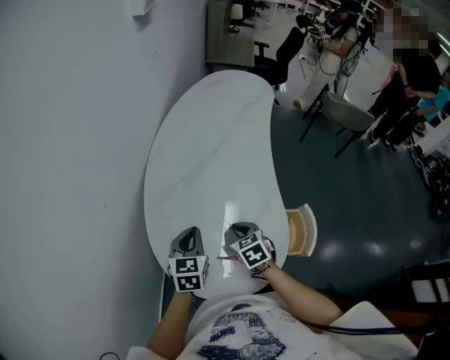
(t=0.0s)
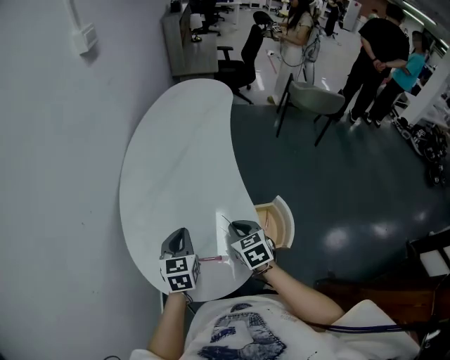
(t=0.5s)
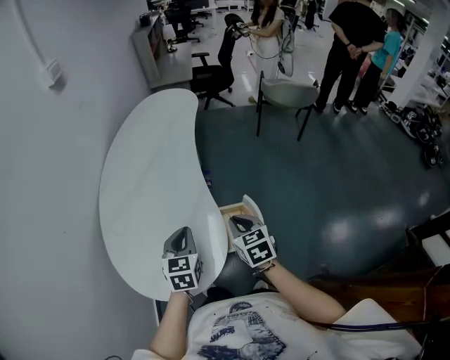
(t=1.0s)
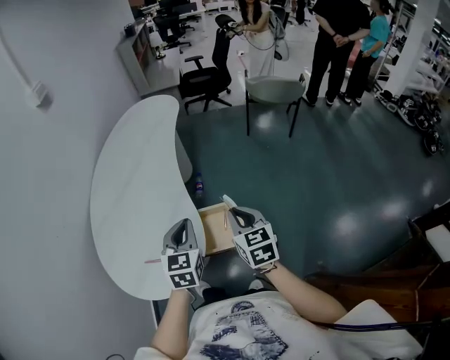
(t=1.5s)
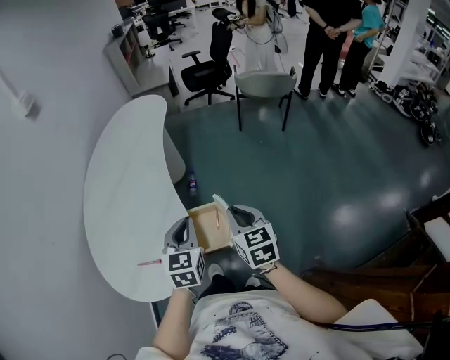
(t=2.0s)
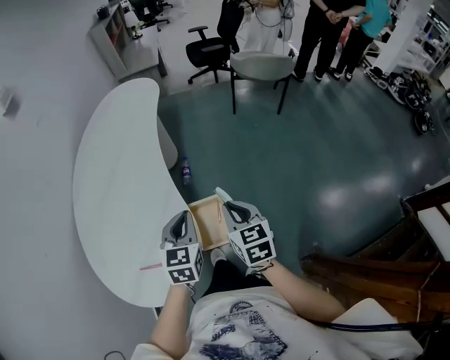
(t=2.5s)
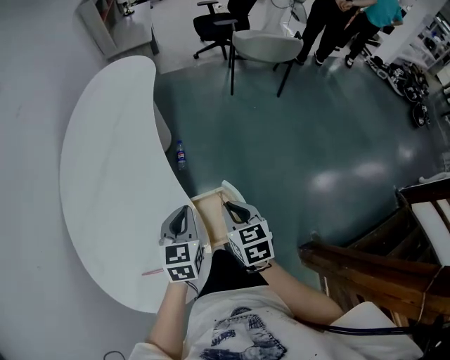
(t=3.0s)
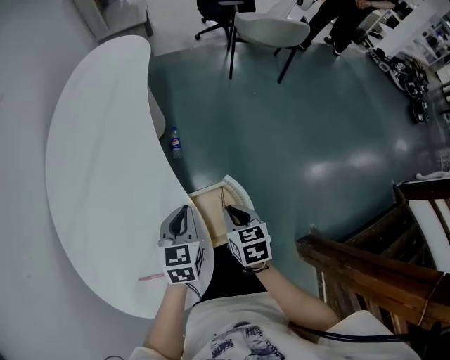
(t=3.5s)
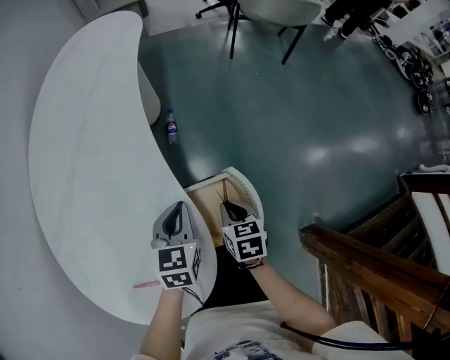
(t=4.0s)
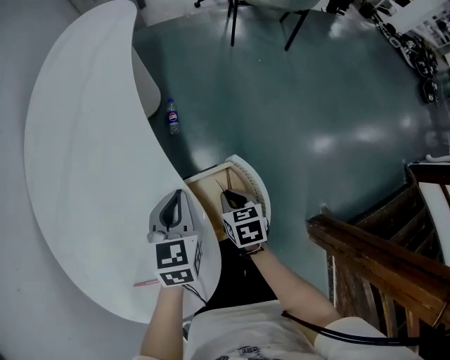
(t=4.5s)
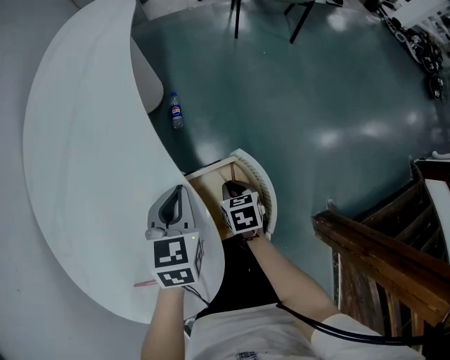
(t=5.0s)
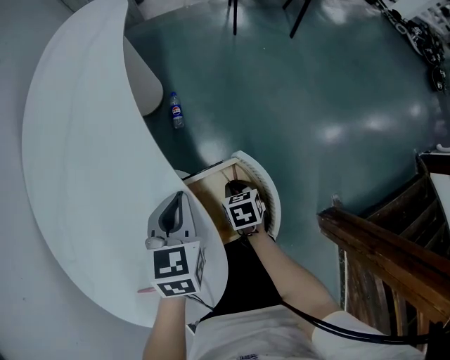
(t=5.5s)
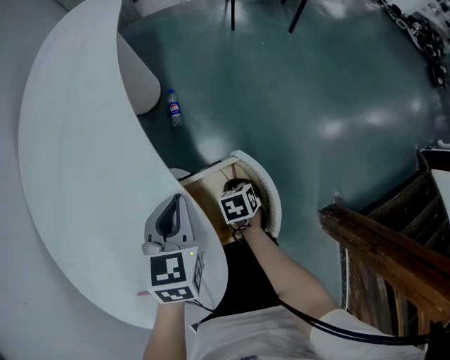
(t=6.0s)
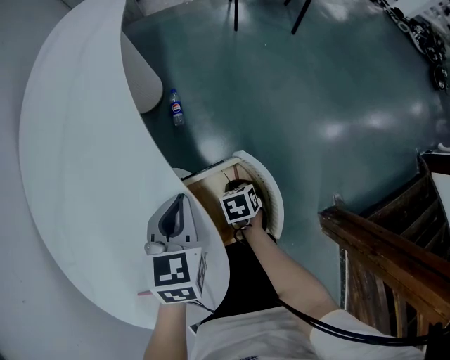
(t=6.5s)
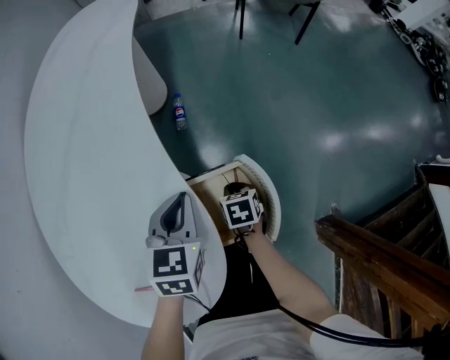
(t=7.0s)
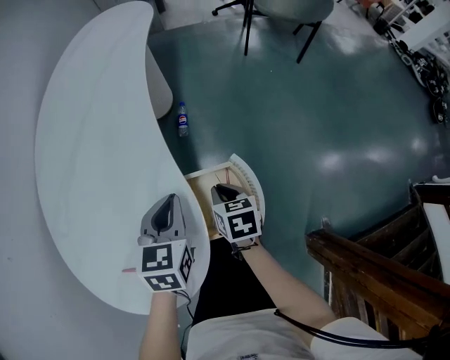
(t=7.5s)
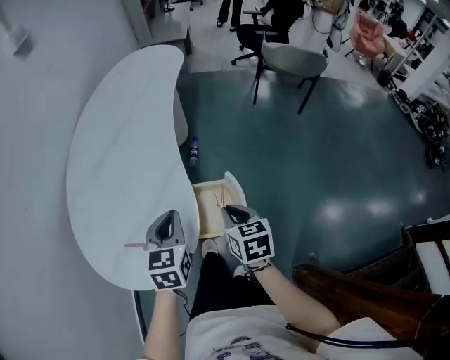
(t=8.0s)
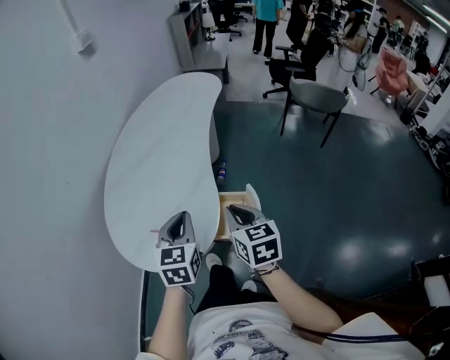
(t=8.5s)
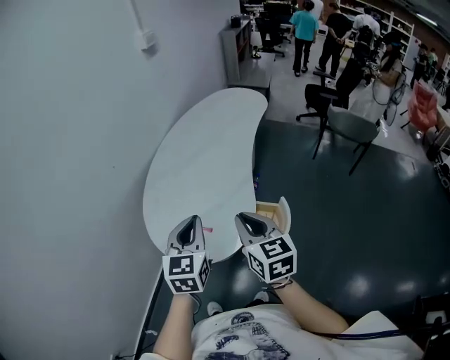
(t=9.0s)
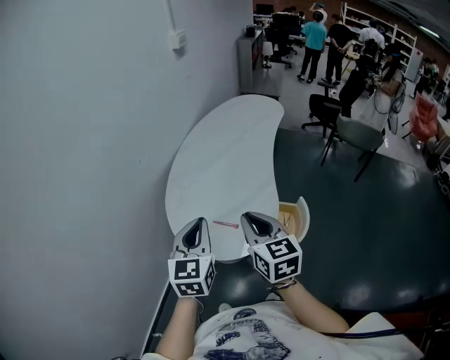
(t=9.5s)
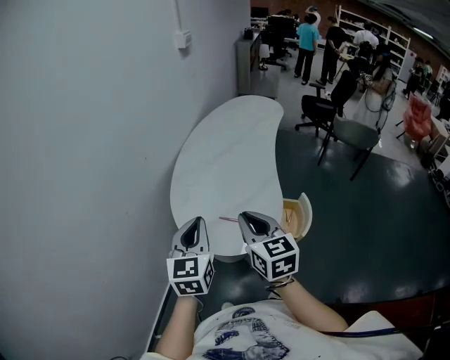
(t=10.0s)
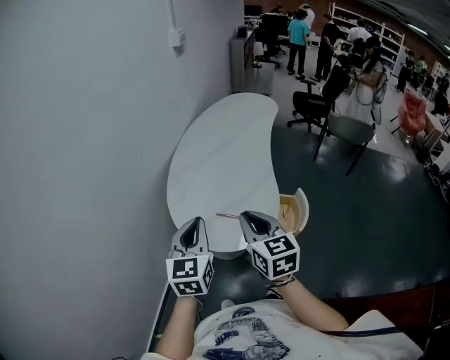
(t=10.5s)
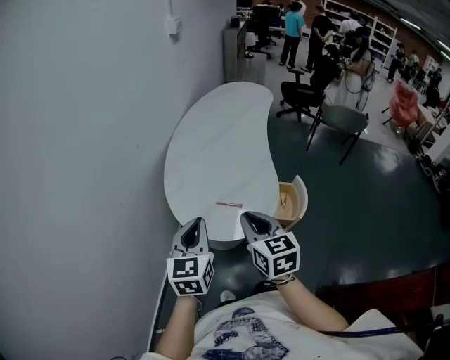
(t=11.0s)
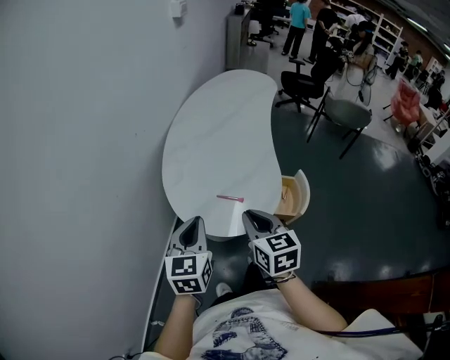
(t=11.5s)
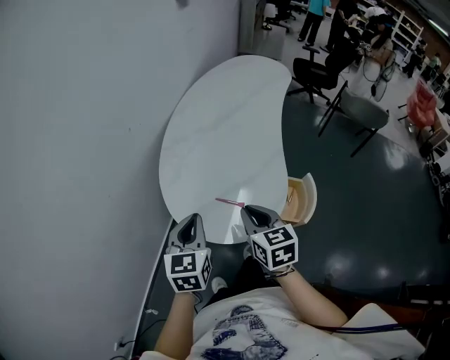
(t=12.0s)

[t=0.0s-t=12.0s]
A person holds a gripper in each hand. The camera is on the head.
t=0.0s to t=2.0s: Both grippers are carried to the right, about 50 cm. The right gripper changes its angle by roughly 40 degrees.
t=2.0s to t=4.0s: The left gripper moves downward, forward and to the left, approximately 30 cm; the right gripper is displaced downward by some 30 cm, and swivels approximately 30 degrees.
t=4.0s to t=6.0s: The right gripper is displaced downward by roughly 15 cm.
t=6.0s to t=8.0s: The right gripper shifts some 30 cm upward, and changes its angle by about 30 degrees, while the left gripper shifts roughly 20 cm upward and backward, and changes its angle by roughly 20 degrees.
t=8.0s to t=10.0s: The right gripper moves to the left and upward, some 40 cm, and turns by approximately 30 degrees; the left gripper heads to the left, upward and backward, covering roughly 40 cm, and turns by roughly 30 degrees.
t=10.0s to t=12.0s: Both grippers move downward and forward, some 15 cm.

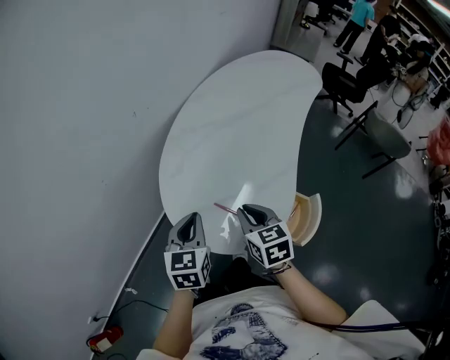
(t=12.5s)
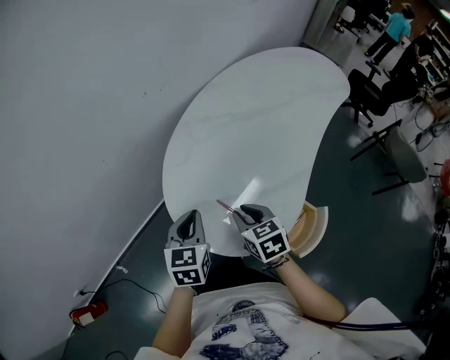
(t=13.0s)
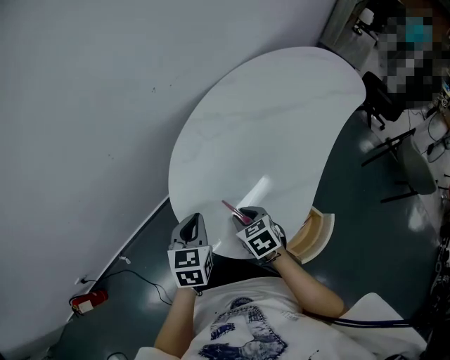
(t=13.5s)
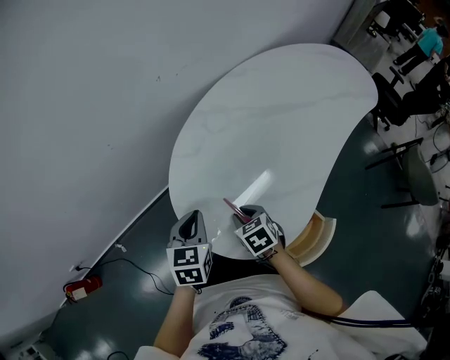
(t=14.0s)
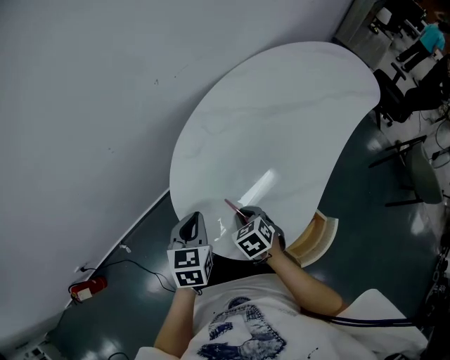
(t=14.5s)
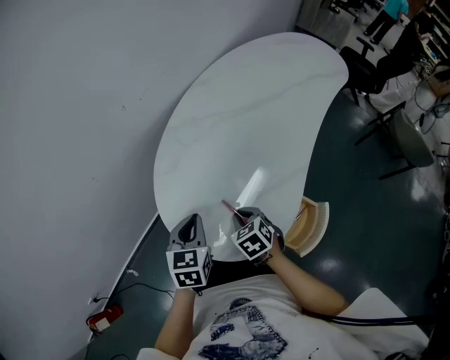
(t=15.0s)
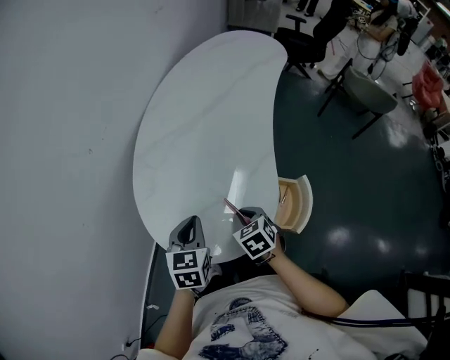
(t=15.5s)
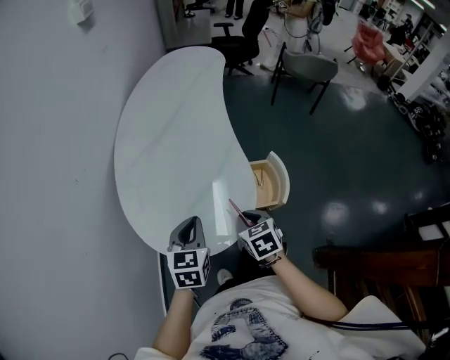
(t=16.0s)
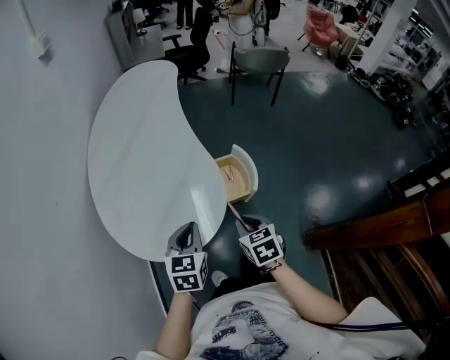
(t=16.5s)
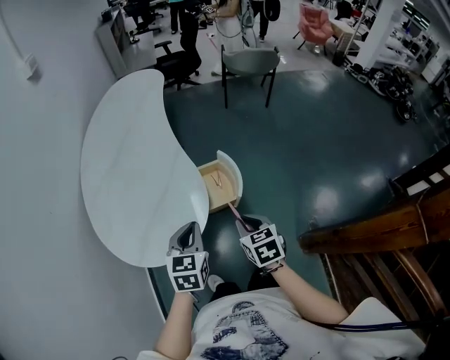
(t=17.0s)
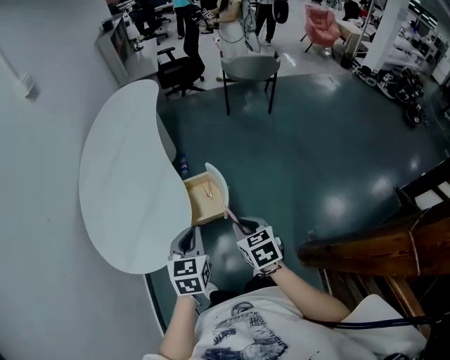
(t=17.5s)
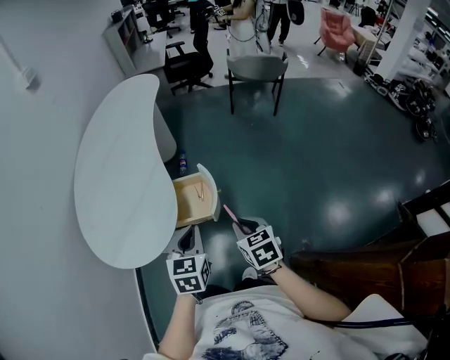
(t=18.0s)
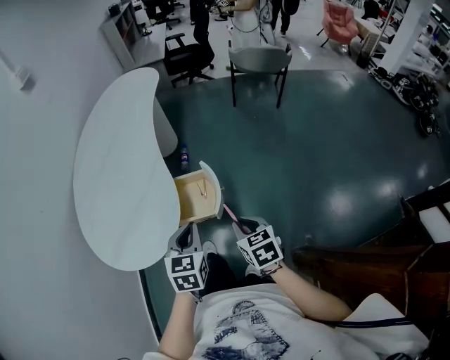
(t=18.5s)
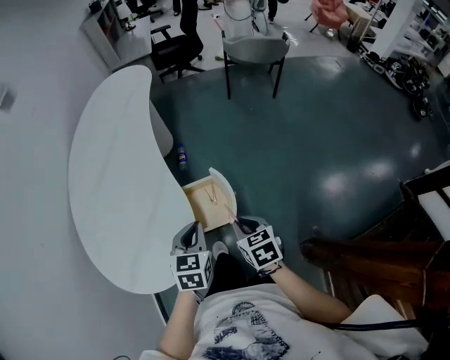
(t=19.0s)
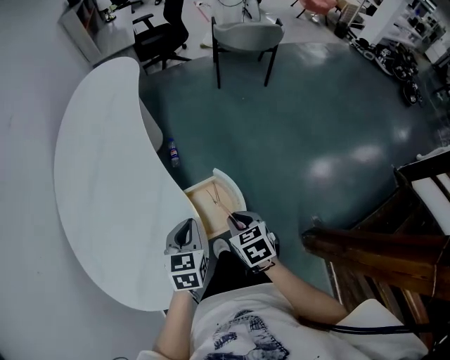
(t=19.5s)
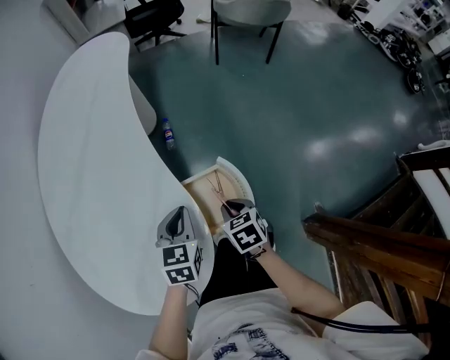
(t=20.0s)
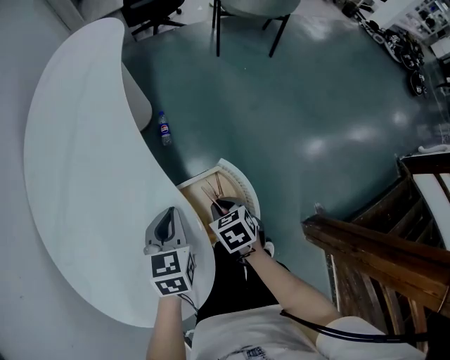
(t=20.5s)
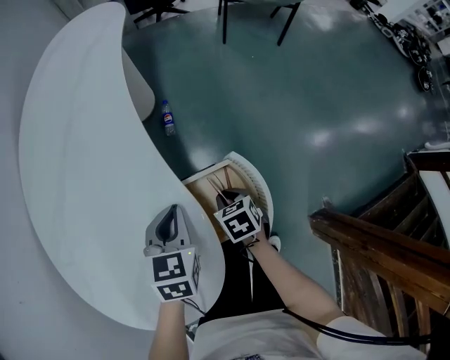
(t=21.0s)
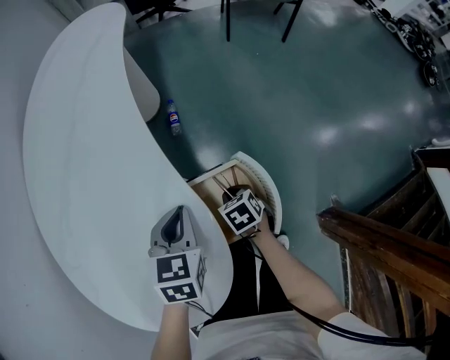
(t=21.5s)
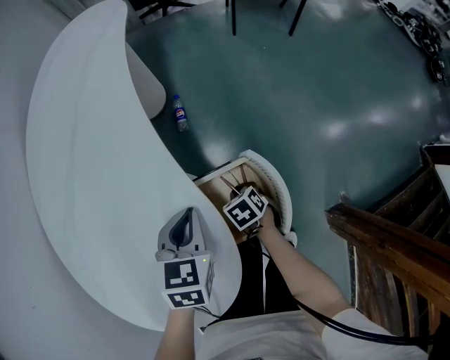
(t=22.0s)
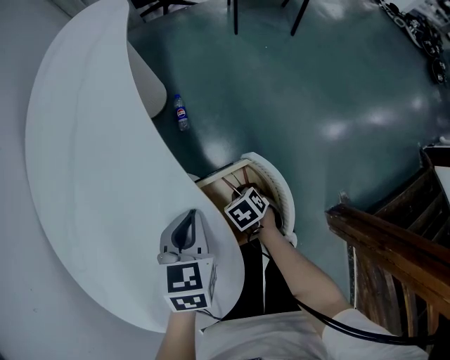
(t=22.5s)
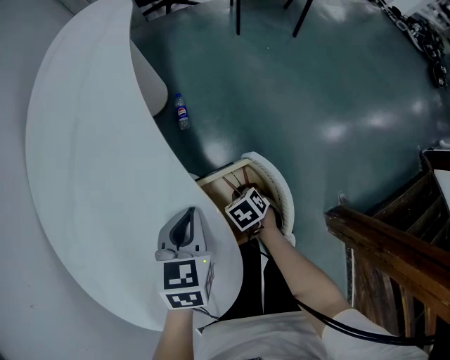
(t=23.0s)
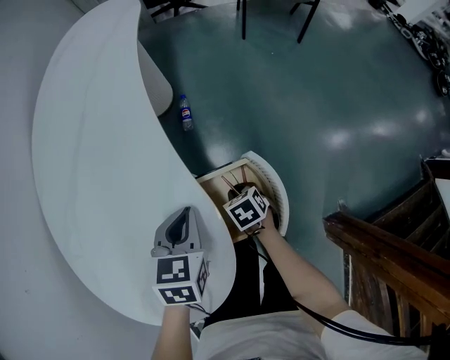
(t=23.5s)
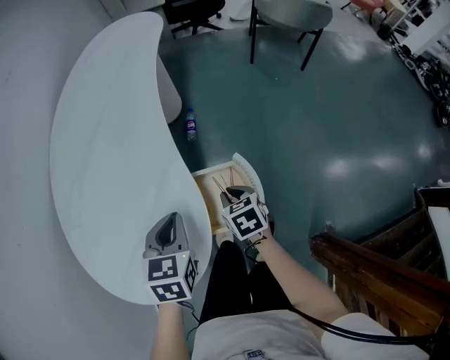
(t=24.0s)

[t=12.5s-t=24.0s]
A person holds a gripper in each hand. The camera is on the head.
t=12.5s to t=14.5s: The right gripper goes roughly 15 cm downward, and turns by roughly 40 degrees, while the left gripper is displaced downward by about 10 cm.
t=14.5s to t=16.5s: The left gripper moves some 20 cm, and swivels roughly 60 degrees. Meanwhile the right gripper changes place by approximately 30 cm, and turns by about 70 degrees.
t=16.5s to t=18.5s: The two grippers go approximately 25 cm to the right.
t=18.5s to t=20.0s: Both grippers travel together forward, downward and to the left, some 30 cm.
t=20.0s to t=22.0s: The right gripper heads downward, covering roughly 20 cm. The left gripper changes place by roughly 5 cm.
t=22.0s to t=24.0s: The right gripper shifts roughly 15 cm upward. Meanwhile the left gripper moves upward and backward, some 10 cm.

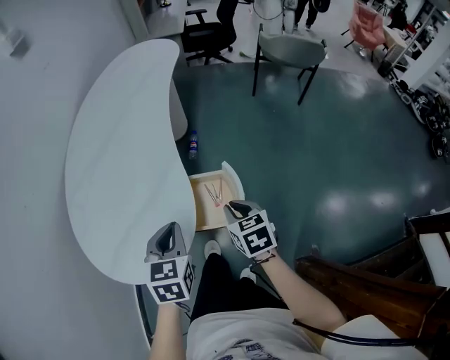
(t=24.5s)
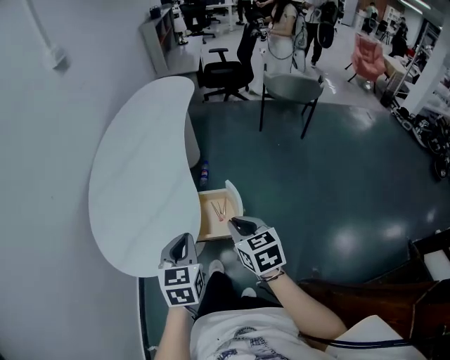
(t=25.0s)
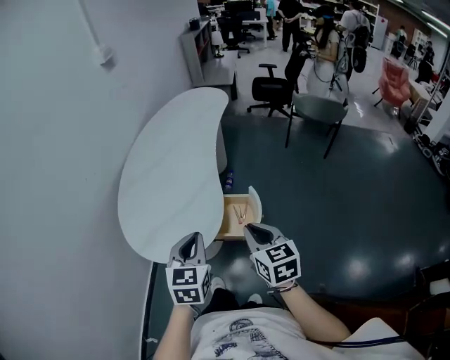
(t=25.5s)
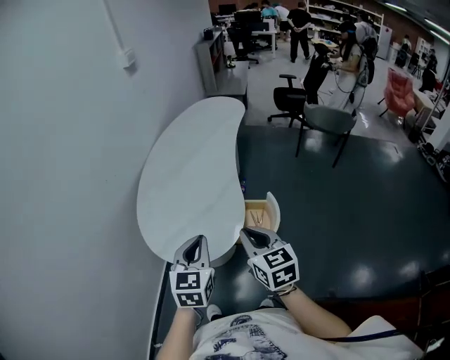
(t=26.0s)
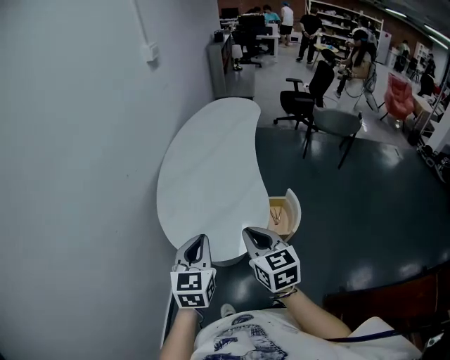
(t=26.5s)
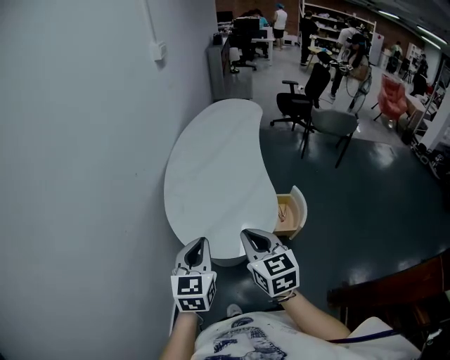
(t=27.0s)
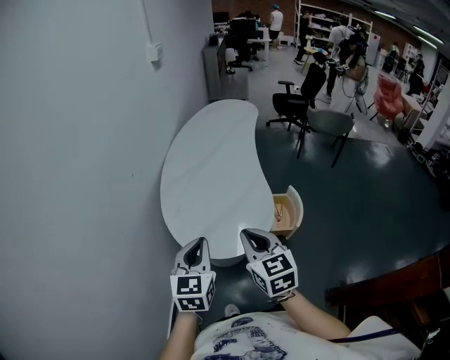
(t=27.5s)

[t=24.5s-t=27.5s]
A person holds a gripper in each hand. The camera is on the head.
t=24.5s to t=26.0s: The right gripper travels upward, to the left and backward by about 30 cm, and turns by roughly 30 degrees. The left gripper travels upward, backward and to the left by about 25 cm.
t=26.0s to t=27.5s: The two grippers go approximately 20 cm to the left.
